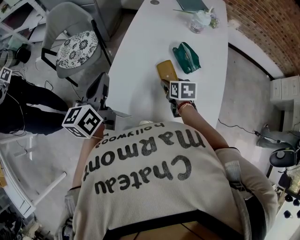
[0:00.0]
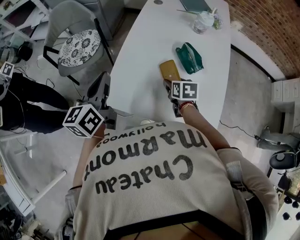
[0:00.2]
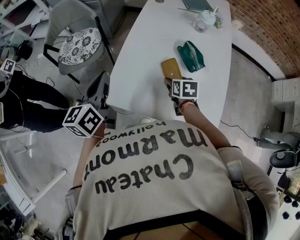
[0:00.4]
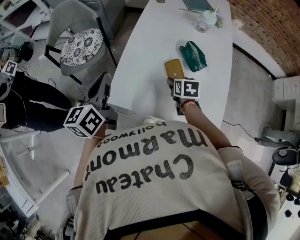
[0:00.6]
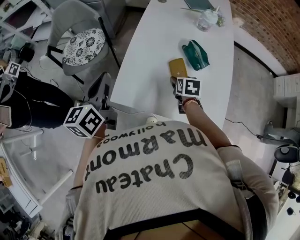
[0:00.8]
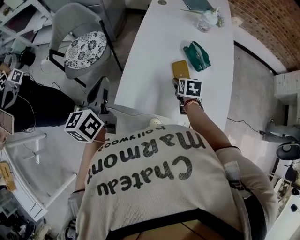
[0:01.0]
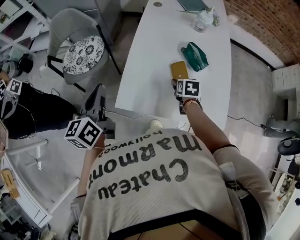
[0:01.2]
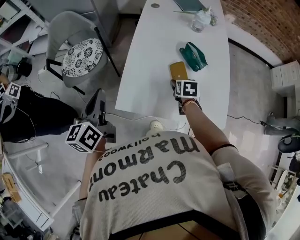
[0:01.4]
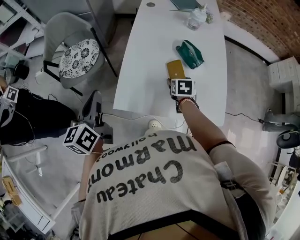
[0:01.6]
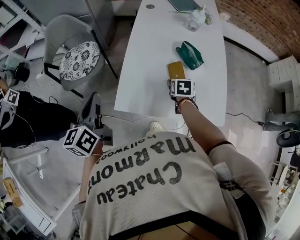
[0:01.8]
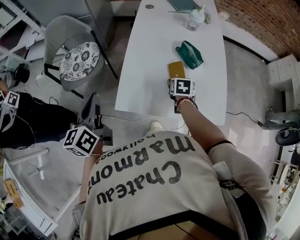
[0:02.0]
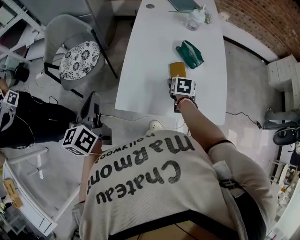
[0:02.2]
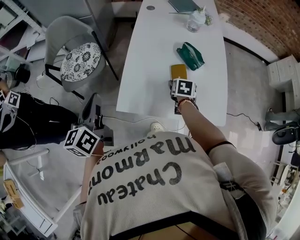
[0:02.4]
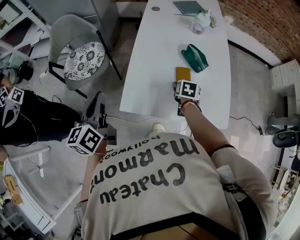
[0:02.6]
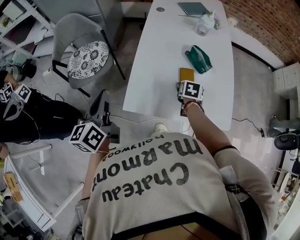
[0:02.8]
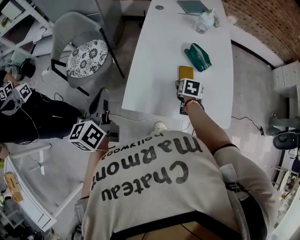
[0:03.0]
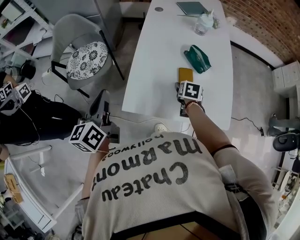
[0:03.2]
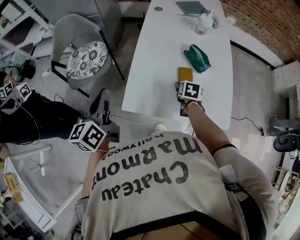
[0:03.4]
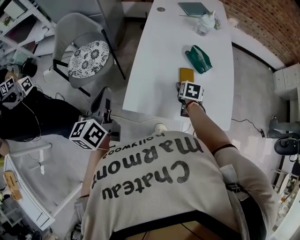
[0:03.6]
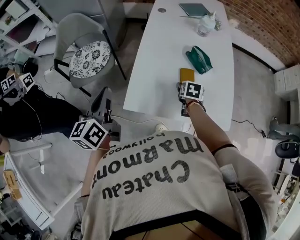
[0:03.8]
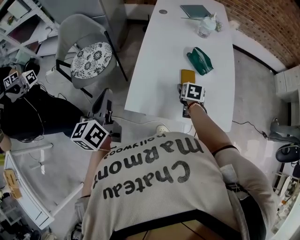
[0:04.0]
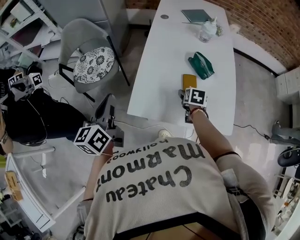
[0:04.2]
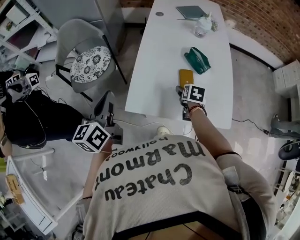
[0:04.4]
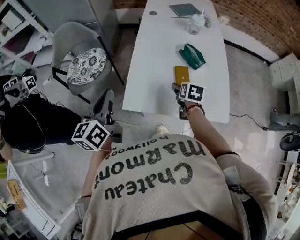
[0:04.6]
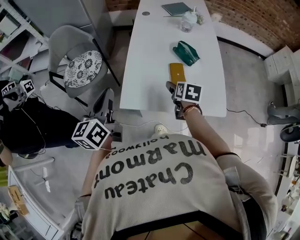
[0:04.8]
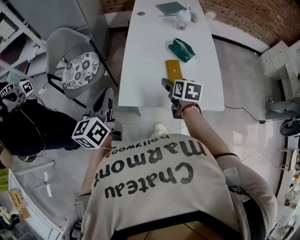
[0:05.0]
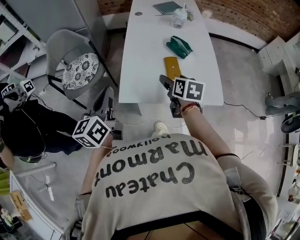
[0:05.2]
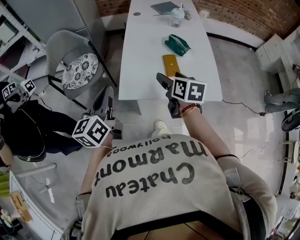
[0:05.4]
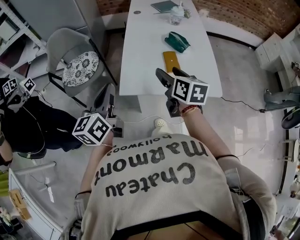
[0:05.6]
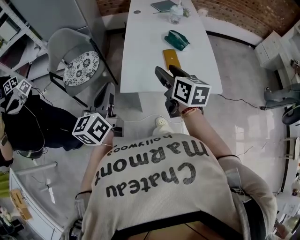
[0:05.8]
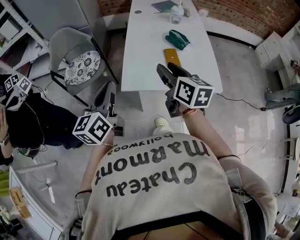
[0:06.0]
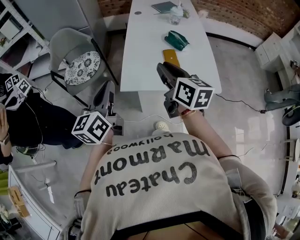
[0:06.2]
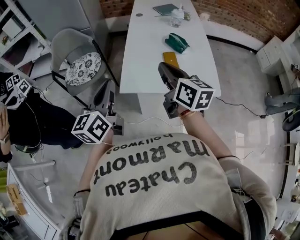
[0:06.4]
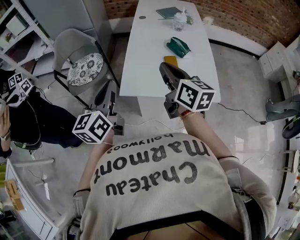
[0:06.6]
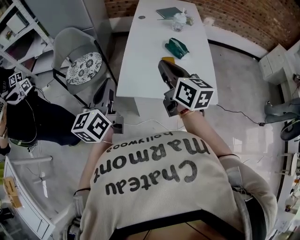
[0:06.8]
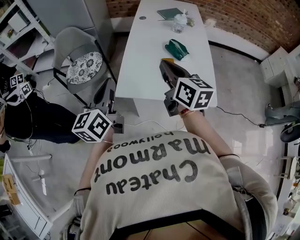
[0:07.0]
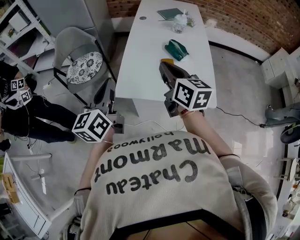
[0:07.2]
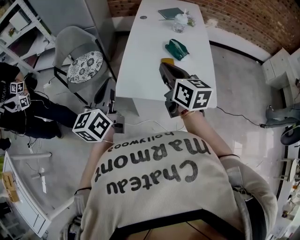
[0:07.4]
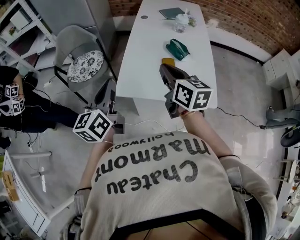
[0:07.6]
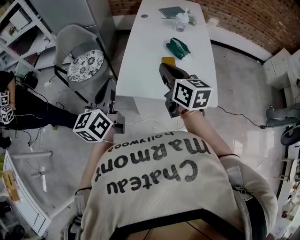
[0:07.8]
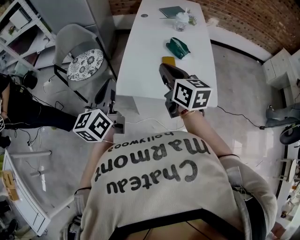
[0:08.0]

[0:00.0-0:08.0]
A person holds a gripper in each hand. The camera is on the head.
0:00.0 to 0:01.6: The left gripper heads to the left, covering approximately 10 cm.
0:01.6 to 0:03.2: The grippers move only a little.
0:03.2 to 0:04.8: The right gripper heads upward and backward, covering approximately 10 cm.
0:04.8 to 0:06.4: The left gripper heads backward, covering roughly 10 cm. The right gripper heads upward, backward and to the left, covering about 25 cm, tilts its fingers approximately 40 degrees upward, and closes up.
0:06.4 to 0:08.0: The grippers stay close to where they were, moving slightly.

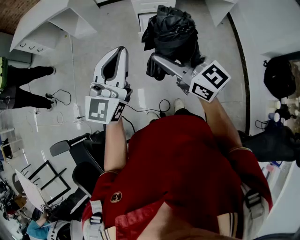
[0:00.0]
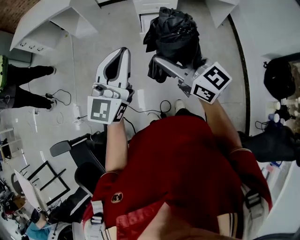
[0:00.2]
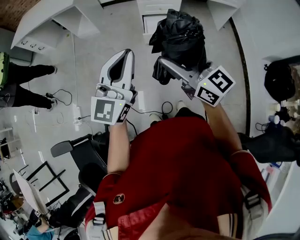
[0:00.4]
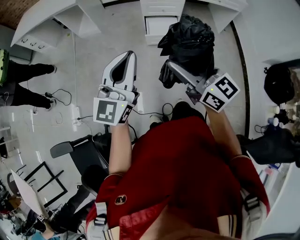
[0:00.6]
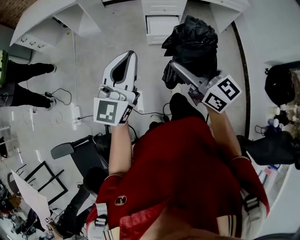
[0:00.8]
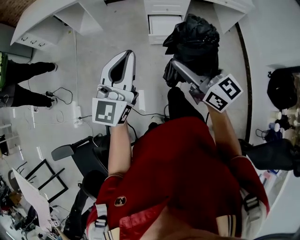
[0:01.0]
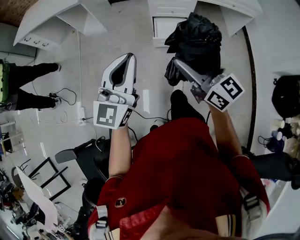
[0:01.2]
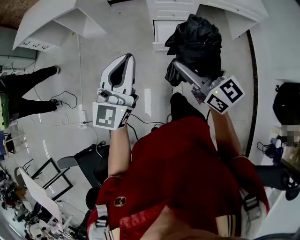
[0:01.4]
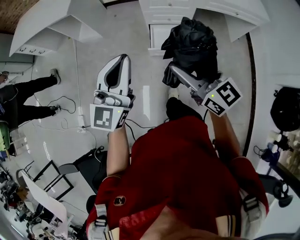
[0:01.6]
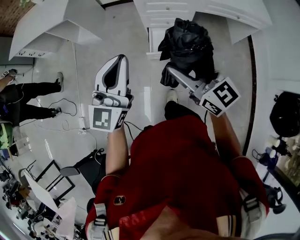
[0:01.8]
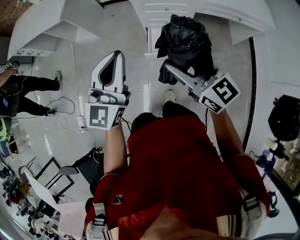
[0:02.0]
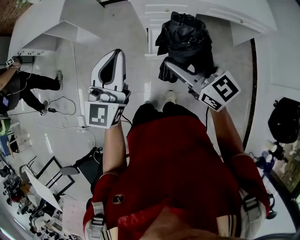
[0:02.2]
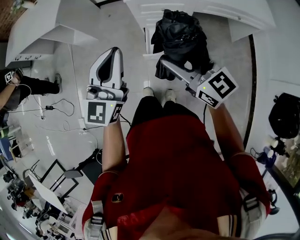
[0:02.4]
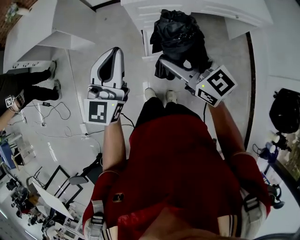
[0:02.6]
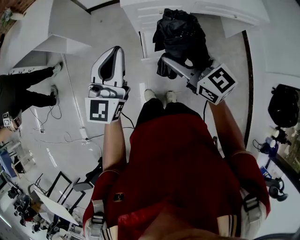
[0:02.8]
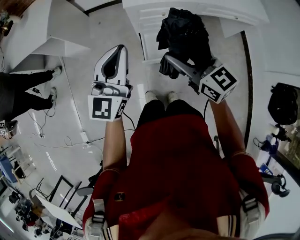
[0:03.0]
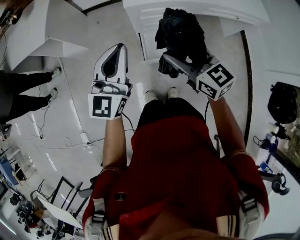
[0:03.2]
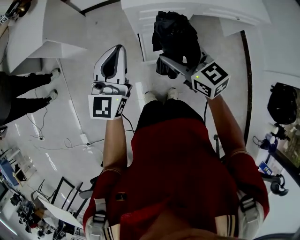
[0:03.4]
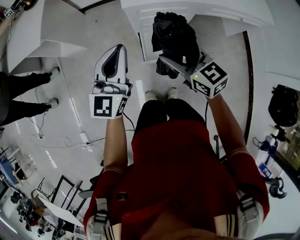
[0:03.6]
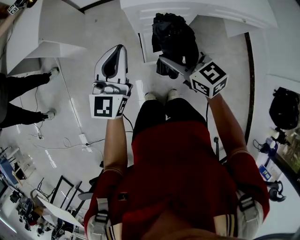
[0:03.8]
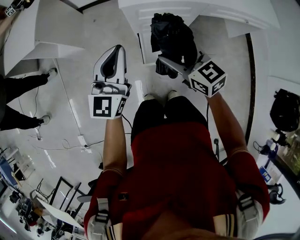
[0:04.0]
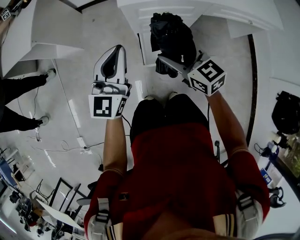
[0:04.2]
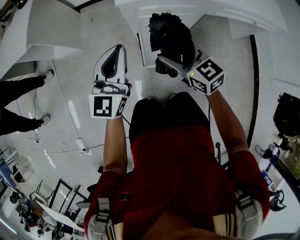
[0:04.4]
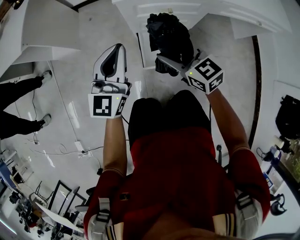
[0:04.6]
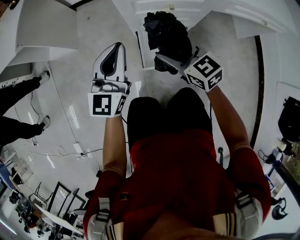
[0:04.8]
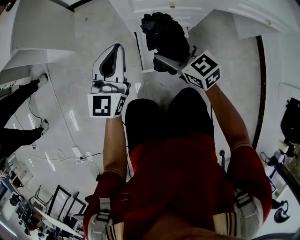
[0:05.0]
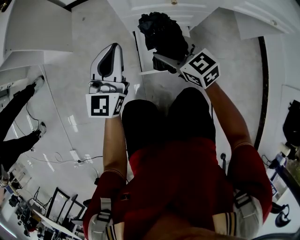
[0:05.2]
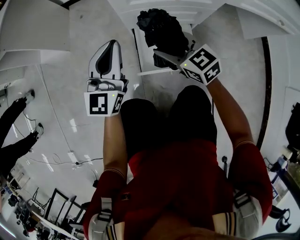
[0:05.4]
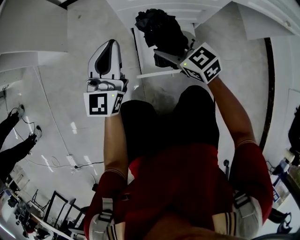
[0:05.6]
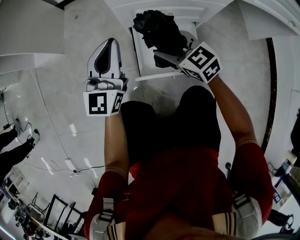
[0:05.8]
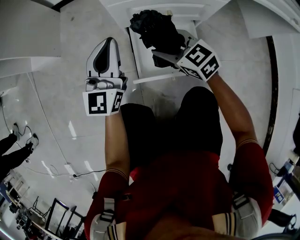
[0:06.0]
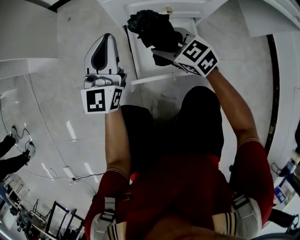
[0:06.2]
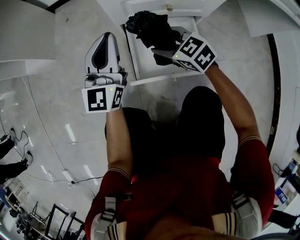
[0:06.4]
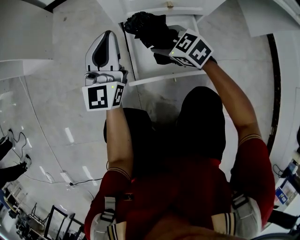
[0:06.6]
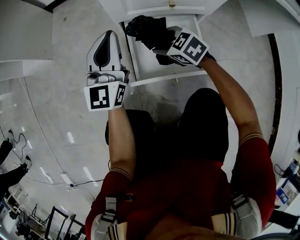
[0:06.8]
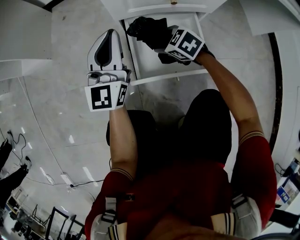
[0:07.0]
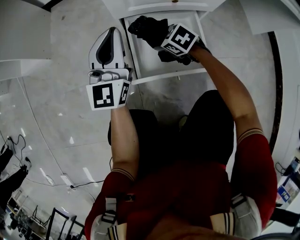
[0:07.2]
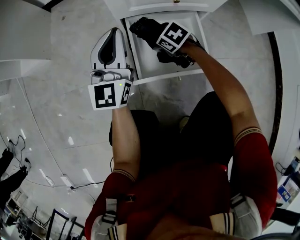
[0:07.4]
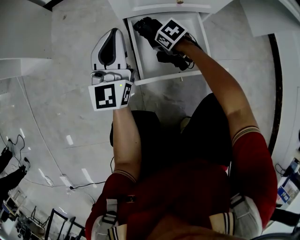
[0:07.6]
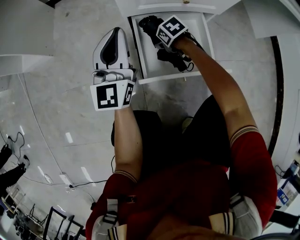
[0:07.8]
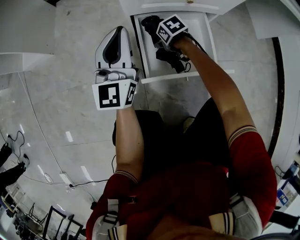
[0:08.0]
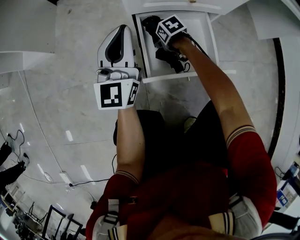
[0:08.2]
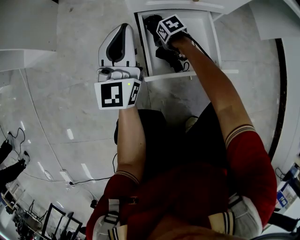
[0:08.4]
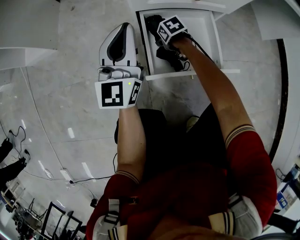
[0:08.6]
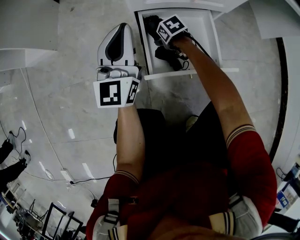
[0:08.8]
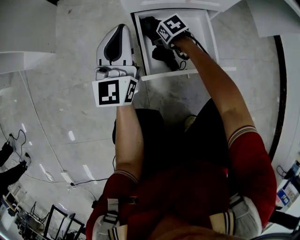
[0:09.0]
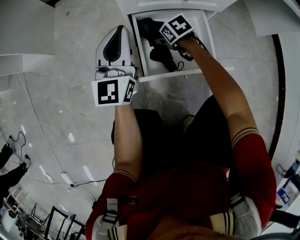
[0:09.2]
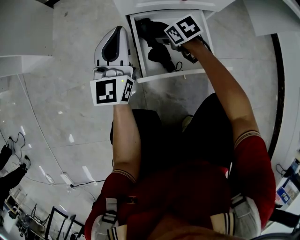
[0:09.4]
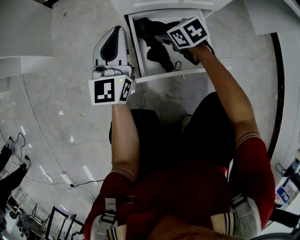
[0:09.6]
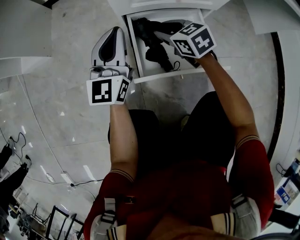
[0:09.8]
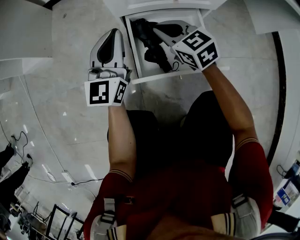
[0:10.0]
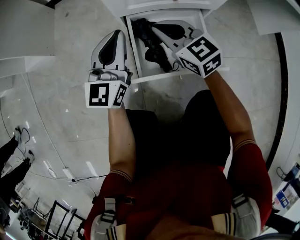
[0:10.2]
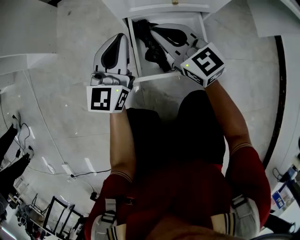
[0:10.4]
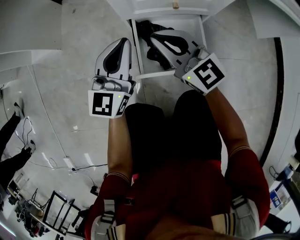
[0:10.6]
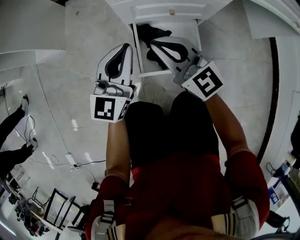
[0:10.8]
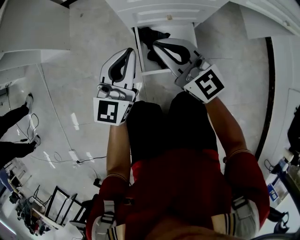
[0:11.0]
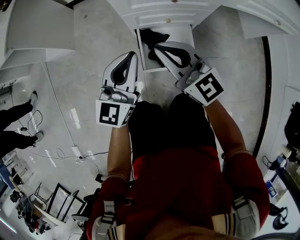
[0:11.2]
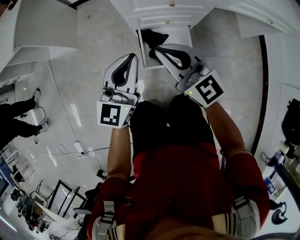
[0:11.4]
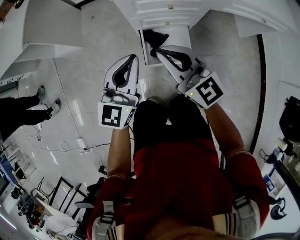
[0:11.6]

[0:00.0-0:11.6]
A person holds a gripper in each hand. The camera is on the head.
0:00.0 to 0:01.4: Both grippers travel together forward, approximately 20 cm.
0:01.4 to 0:02.8: The grippers both shift forward by about 25 cm.
0:02.8 to 0:04.4: The two grippers go about 25 cm downward and forward.
0:04.4 to 0:05.8: The two grippers go some 30 cm downward.
0:05.8 to 0:07.2: The right gripper heads downward, covering some 25 cm, and points its fingers some 30 degrees further downward, while the left gripper travels downward by roughly 10 cm.
0:07.2 to 0:08.8: The right gripper travels downward by roughly 10 cm, and changes its angle by approximately 30 degrees.
0:08.8 to 0:10.2: The right gripper goes about 25 cm upward, points its fingers some 50 degrees further upward, and closes up.
0:10.2 to 0:11.6: The grippers both shift upward by about 40 cm. The right gripper changes its angle by roughly 20 degrees.

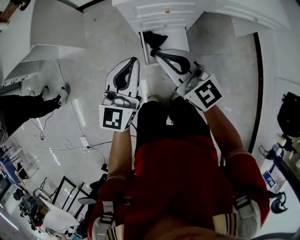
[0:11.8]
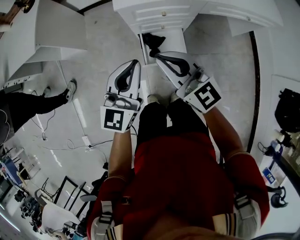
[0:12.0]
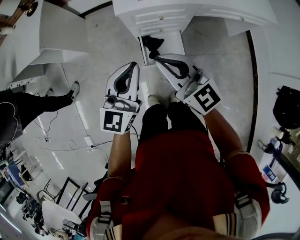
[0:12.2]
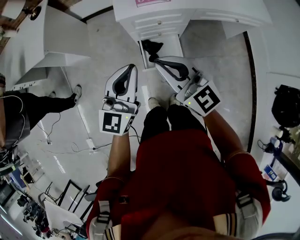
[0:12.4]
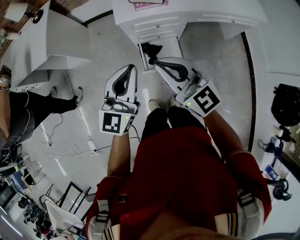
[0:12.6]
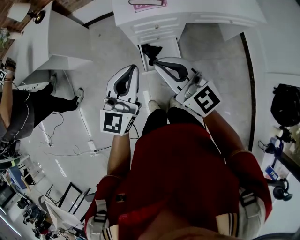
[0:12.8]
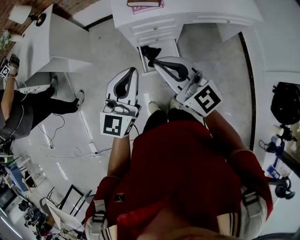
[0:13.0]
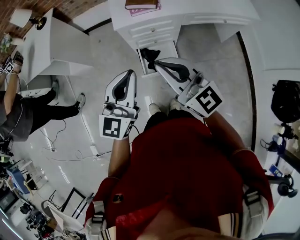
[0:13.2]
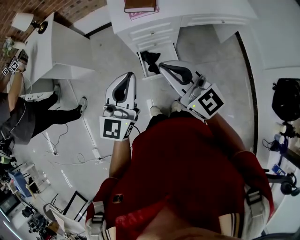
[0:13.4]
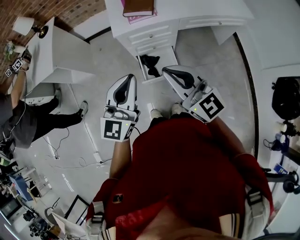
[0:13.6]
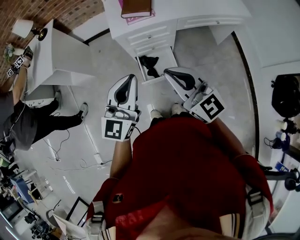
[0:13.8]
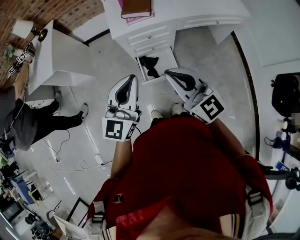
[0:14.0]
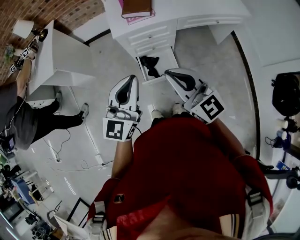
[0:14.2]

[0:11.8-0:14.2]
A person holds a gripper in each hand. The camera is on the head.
0:11.8 to 0:13.0: The grippers both shift upward by approximately 20 cm.
0:13.0 to 0:14.2: The right gripper shifts approximately 5 cm backward.

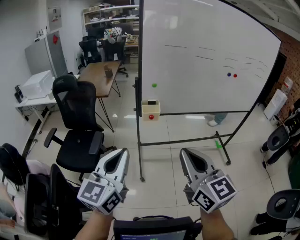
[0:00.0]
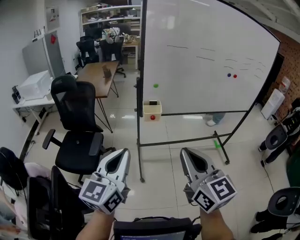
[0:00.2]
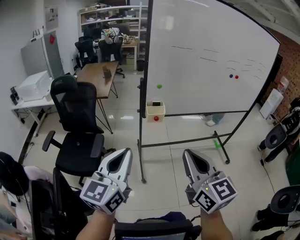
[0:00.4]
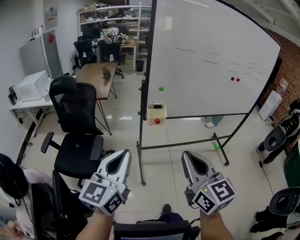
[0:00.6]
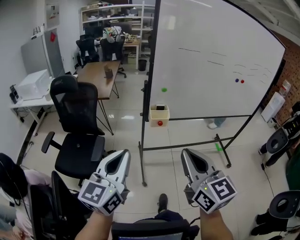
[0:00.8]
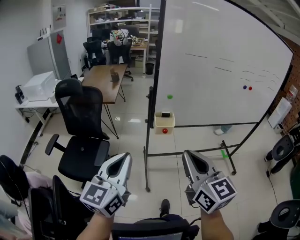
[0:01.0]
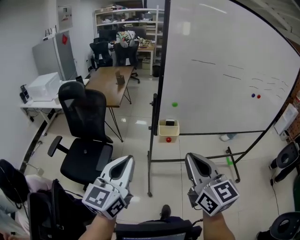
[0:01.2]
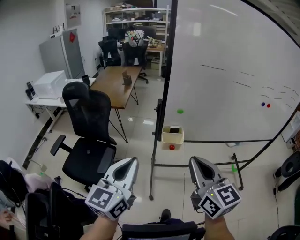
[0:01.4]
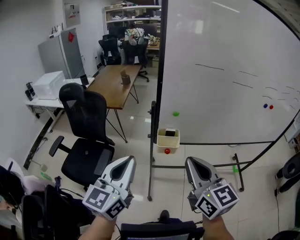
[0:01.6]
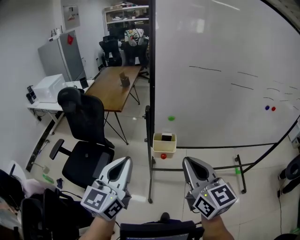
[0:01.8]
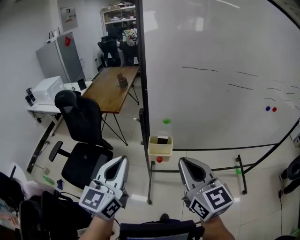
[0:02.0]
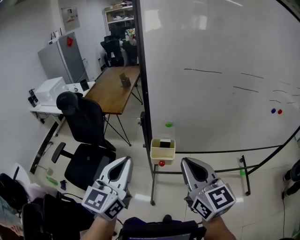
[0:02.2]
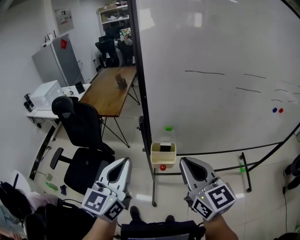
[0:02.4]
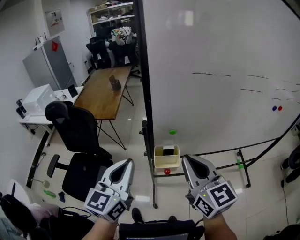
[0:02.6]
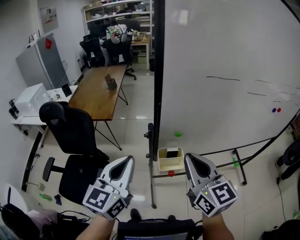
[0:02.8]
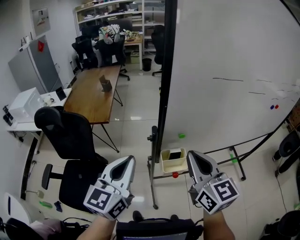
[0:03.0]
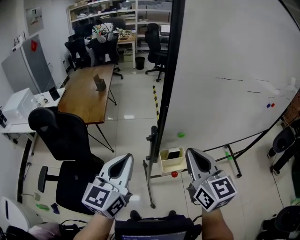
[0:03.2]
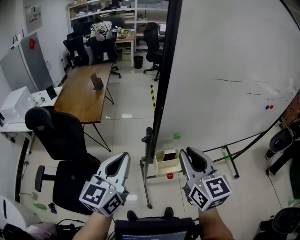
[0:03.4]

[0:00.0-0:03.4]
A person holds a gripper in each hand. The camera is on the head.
0:00.0 to 0:01.6: Both grippers travel together forward, some 25 cm.
0:01.6 to 0:03.4: The two grippers go about 25 cm forward.
